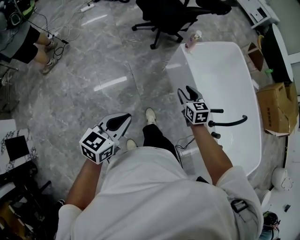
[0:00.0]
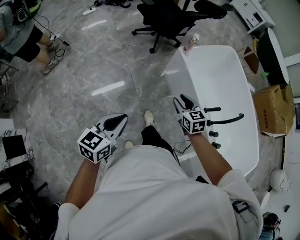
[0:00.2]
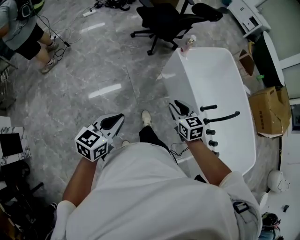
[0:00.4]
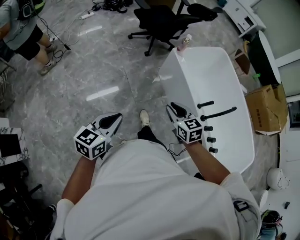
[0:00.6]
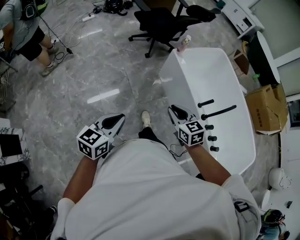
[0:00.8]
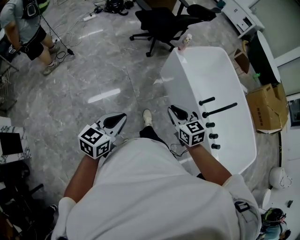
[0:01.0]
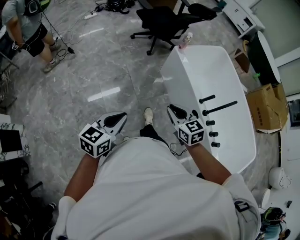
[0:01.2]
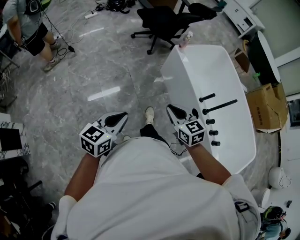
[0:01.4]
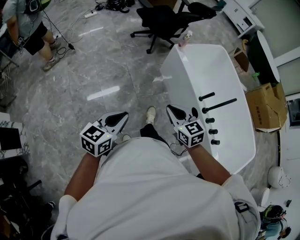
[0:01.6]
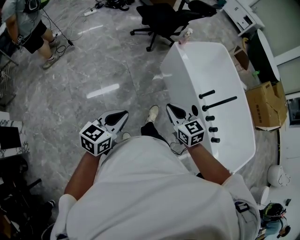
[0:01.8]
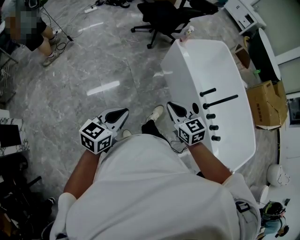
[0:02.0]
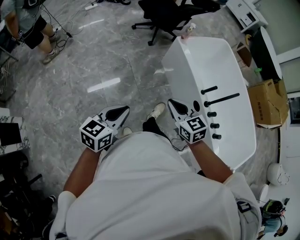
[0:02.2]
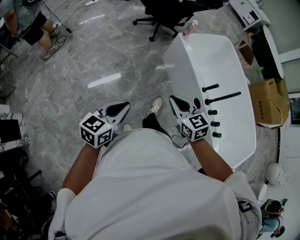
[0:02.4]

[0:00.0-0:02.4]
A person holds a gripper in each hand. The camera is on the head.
0:00.0 to 0:01.2: The right gripper goes about 25 cm backward, and closes up. Meanwhile the left gripper shifts some 15 cm backward.
0:01.2 to 0:02.4: The grippers make only small movements.

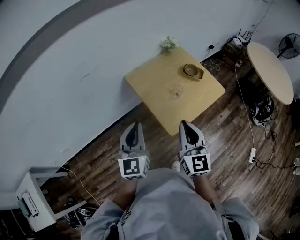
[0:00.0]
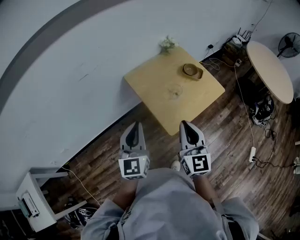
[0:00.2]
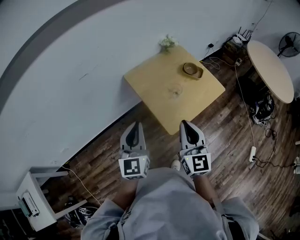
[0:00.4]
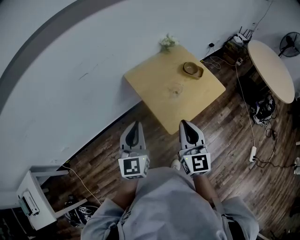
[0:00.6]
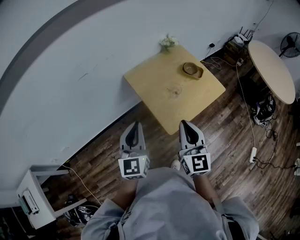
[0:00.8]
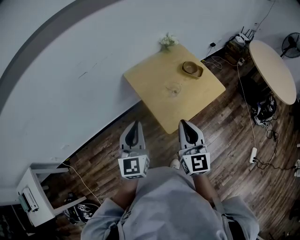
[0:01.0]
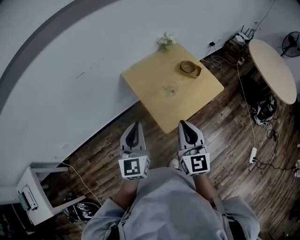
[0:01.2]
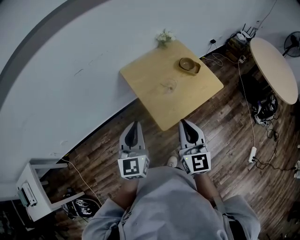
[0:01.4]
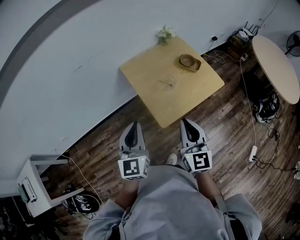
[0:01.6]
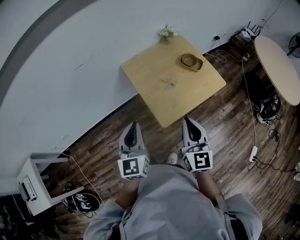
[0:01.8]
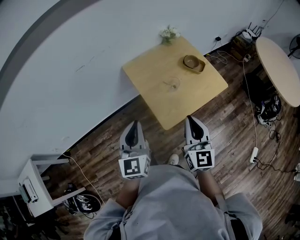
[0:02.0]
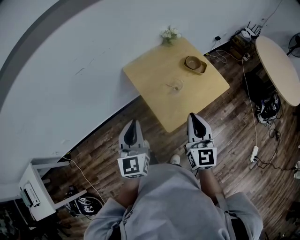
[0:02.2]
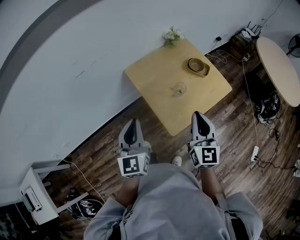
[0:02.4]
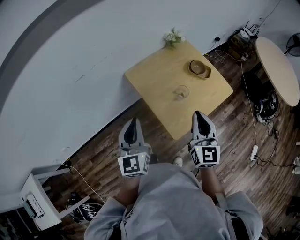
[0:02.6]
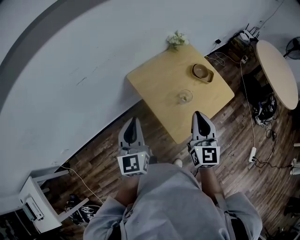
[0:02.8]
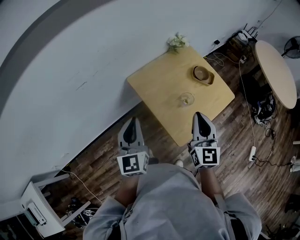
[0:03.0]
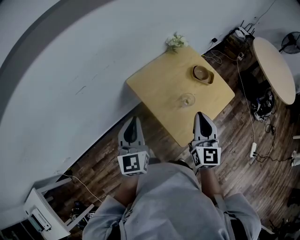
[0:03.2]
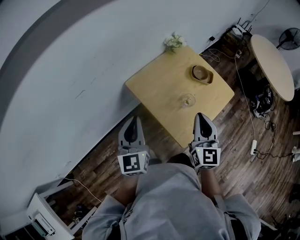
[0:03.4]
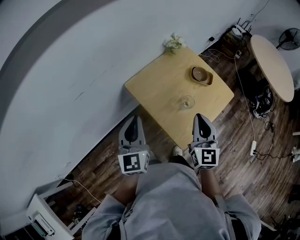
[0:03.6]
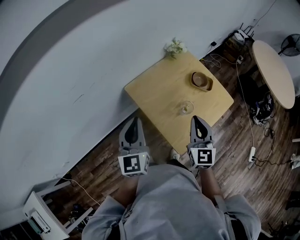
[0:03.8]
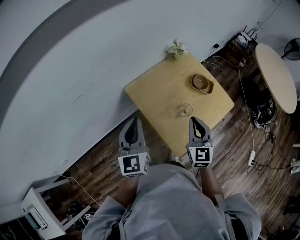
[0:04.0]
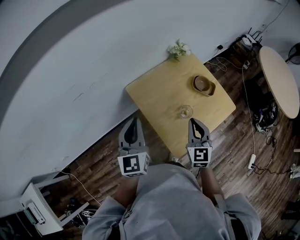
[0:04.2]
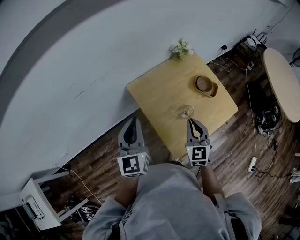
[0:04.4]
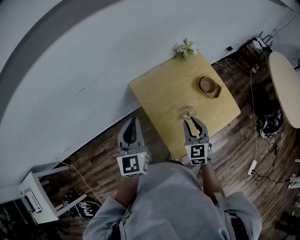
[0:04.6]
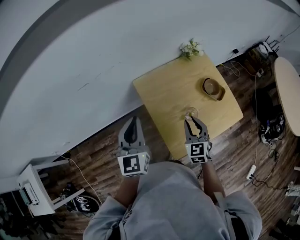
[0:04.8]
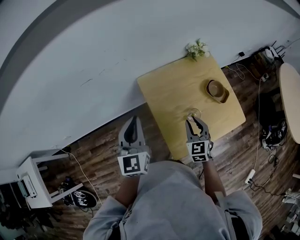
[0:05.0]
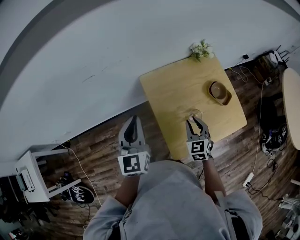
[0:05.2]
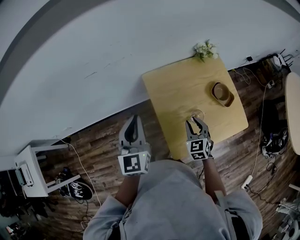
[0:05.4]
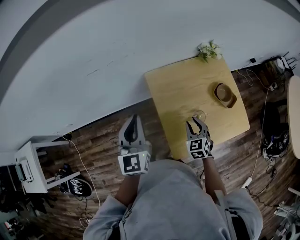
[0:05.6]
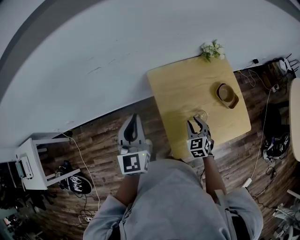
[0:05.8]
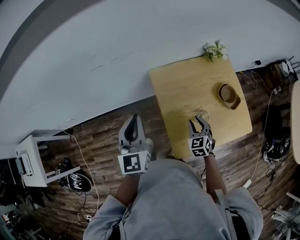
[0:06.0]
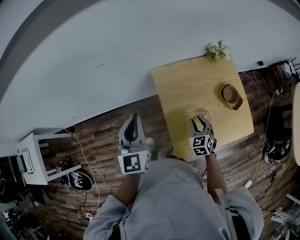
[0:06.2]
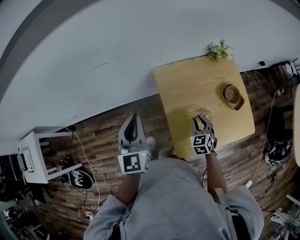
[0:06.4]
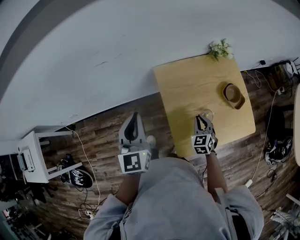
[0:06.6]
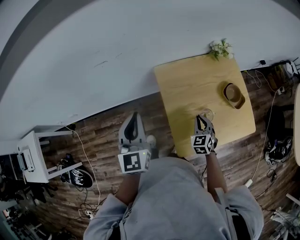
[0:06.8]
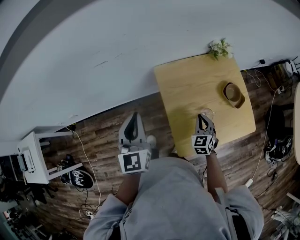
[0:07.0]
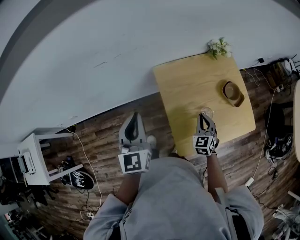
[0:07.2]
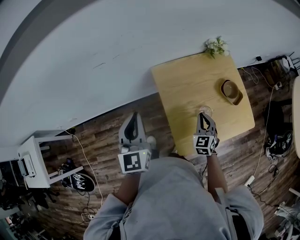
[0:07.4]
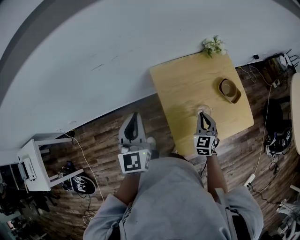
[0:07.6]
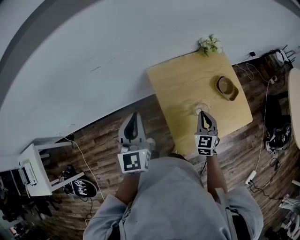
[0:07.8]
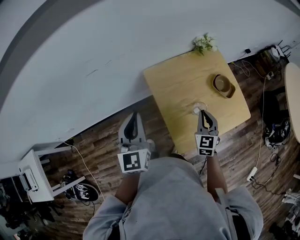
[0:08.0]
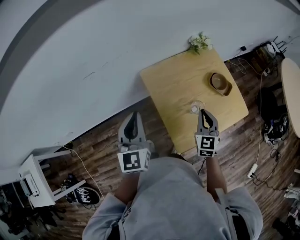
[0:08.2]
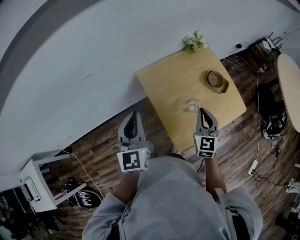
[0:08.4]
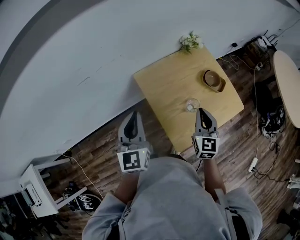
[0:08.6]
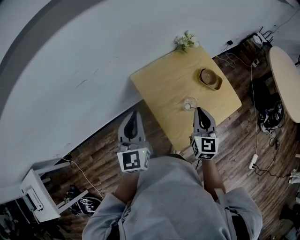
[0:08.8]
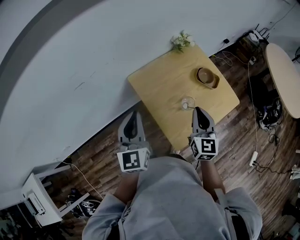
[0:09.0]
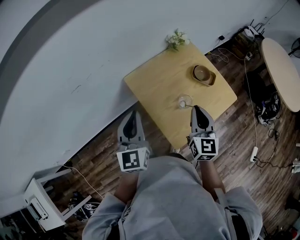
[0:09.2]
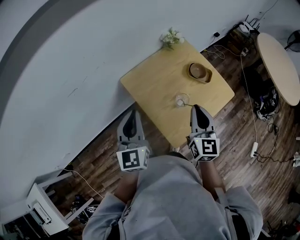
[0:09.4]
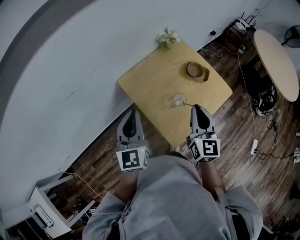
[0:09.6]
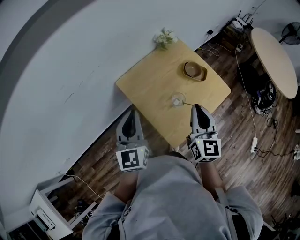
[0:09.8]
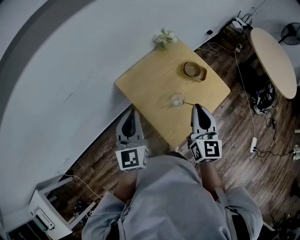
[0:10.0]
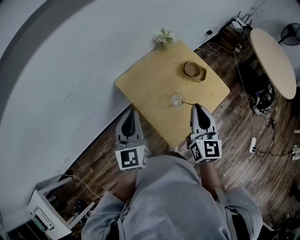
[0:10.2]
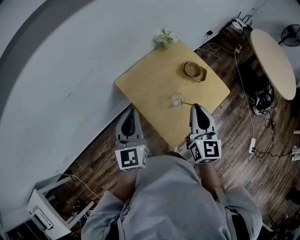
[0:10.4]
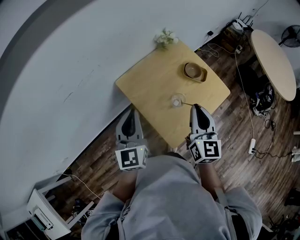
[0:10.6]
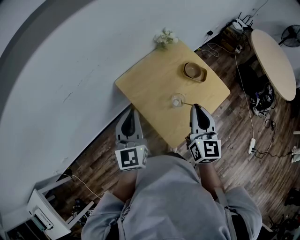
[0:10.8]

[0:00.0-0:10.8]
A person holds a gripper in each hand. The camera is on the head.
0:00.0 to 0:01.6: Both grippers move to the right, approximately 5 cm.
0:01.6 to 0:03.0: The left gripper travels forward and to the left by about 20 cm, while the right gripper is displaced forward by approximately 15 cm.
0:03.0 to 0:04.6: The right gripper heads downward and forward, covering roughly 15 cm, turns by approximately 30 degrees, and opens. Meanwhile the left gripper travels forward by some 5 cm.
0:04.6 to 0:06.2: The right gripper is displaced downward by about 15 cm, and changes its angle by some 20 degrees.
0:06.2 to 0:07.8: The right gripper goes some 5 cm upward, swivels some 20 degrees, and closes up.
0:07.8 to 0:09.2: The right gripper shifts about 15 cm upward, and swivels some 30 degrees. The left gripper changes place by roughly 5 cm.
0:09.2 to 0:10.8: The grippers move only a little.

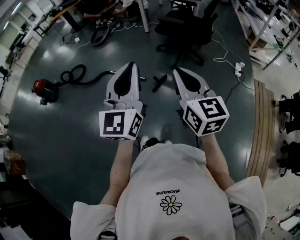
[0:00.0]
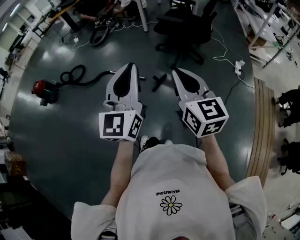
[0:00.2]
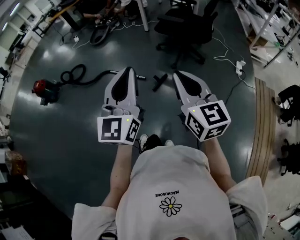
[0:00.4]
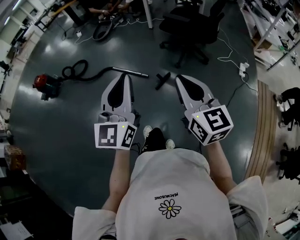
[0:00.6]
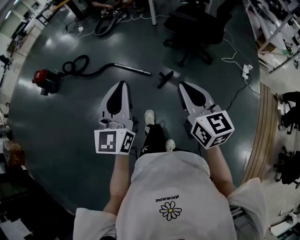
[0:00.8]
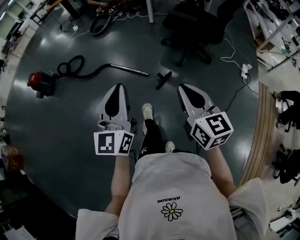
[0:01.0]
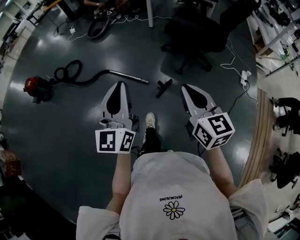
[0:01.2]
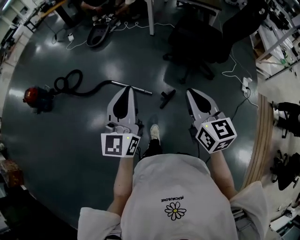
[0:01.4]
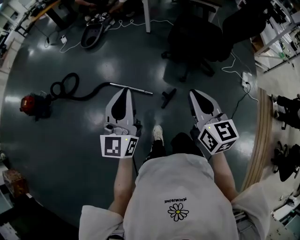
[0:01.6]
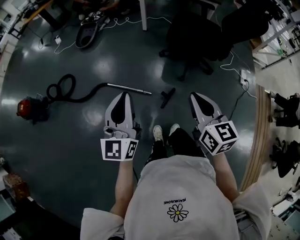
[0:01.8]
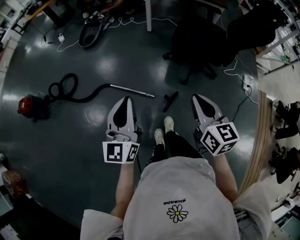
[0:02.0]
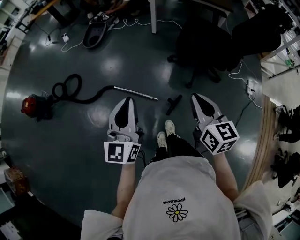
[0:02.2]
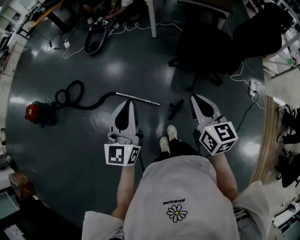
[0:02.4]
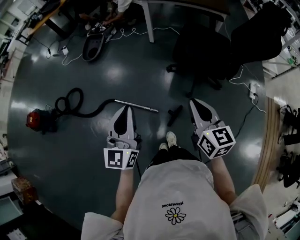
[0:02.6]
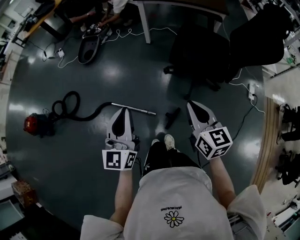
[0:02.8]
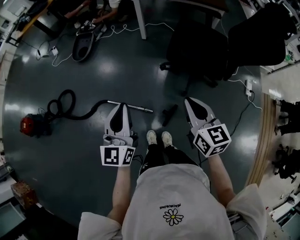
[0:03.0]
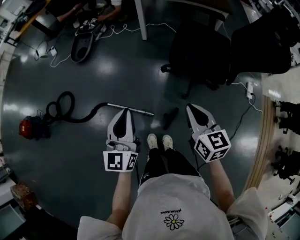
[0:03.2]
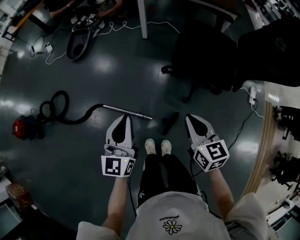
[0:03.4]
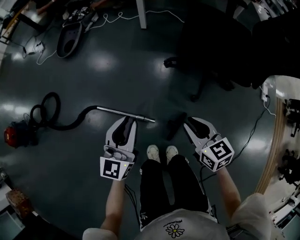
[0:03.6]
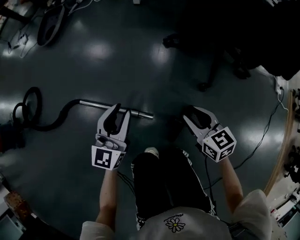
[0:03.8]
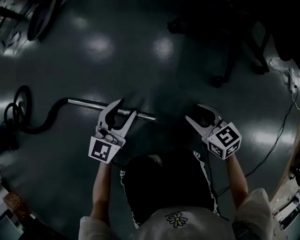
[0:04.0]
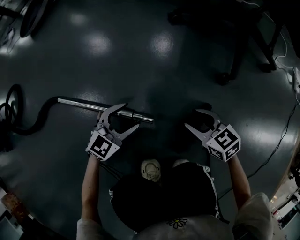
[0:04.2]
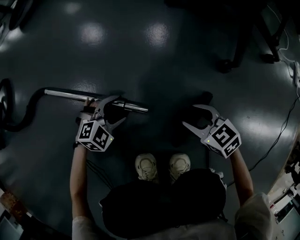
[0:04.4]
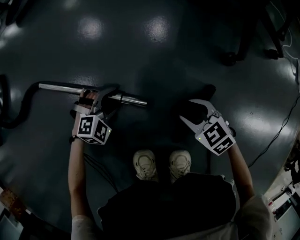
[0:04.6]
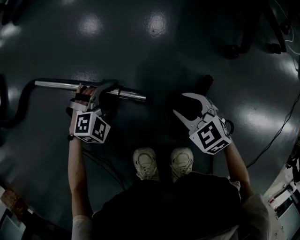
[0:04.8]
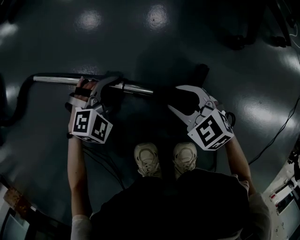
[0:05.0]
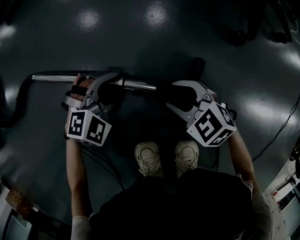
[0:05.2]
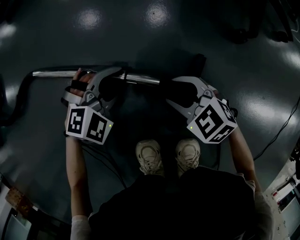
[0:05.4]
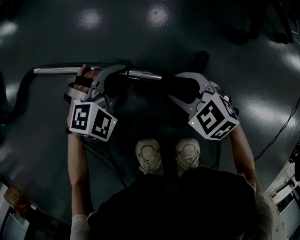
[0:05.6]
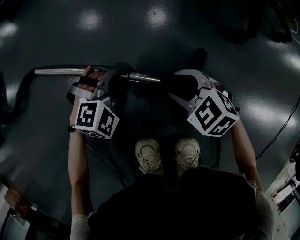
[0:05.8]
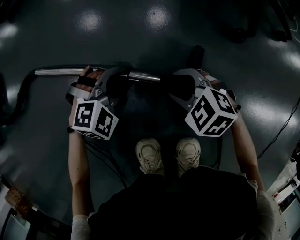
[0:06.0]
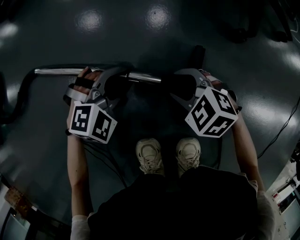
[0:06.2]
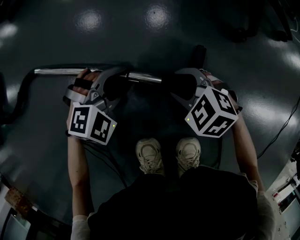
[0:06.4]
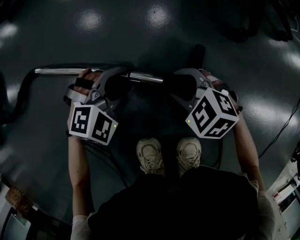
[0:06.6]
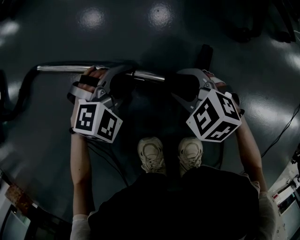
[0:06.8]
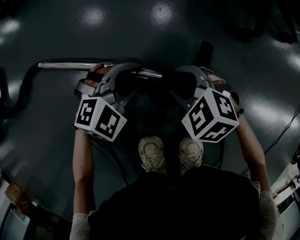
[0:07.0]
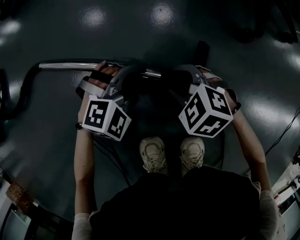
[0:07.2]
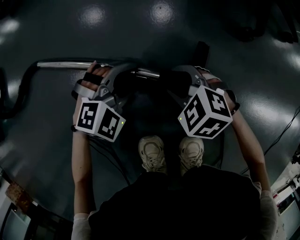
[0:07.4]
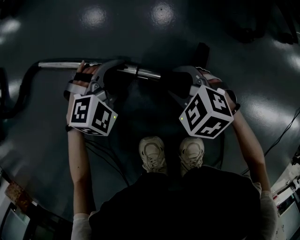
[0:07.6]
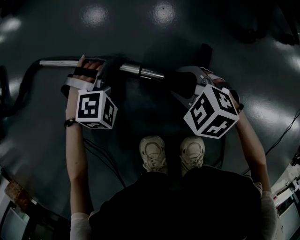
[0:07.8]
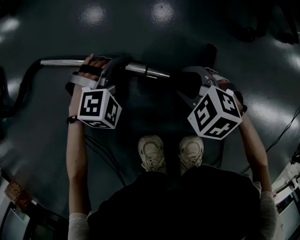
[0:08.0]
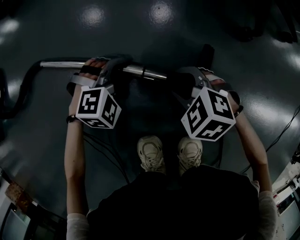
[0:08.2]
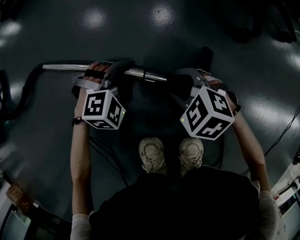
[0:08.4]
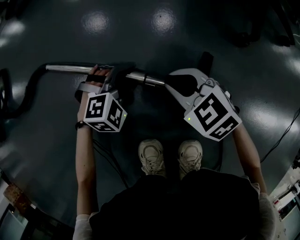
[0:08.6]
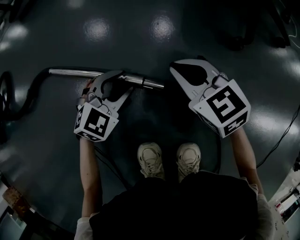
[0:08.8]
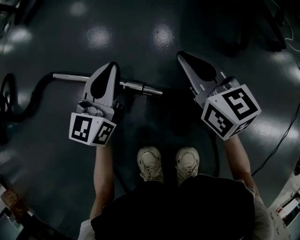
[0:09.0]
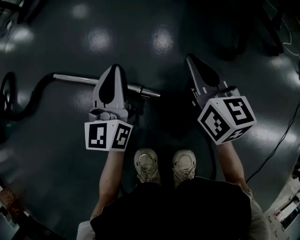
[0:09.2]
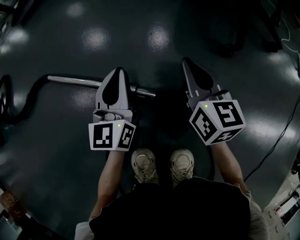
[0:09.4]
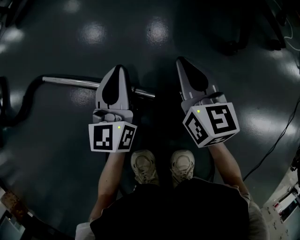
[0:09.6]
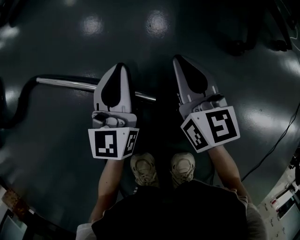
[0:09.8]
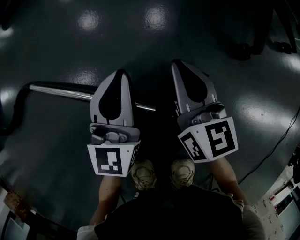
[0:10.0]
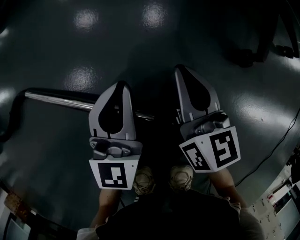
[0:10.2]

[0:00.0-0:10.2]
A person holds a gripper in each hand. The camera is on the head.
0:00.0 to 0:01.4: The left gripper shifts approximately 30 cm forward and to the left. Meanwhile the right gripper travels forward by about 25 cm.
0:01.4 to 0:03.0: Both grippers travel together forward, some 30 cm.
0:03.0 to 0:04.4: Both grippers travel together downward, roughly 90 cm. The left gripper points its fingers roughly 60 degrees further downward, and opens up, while the right gripper rotates about 40 degrees, and opens.
0:04.4 to 0:05.8: The left gripper closes its fingers, while the right gripper moves to the left, approximately 10 cm, and turns by about 30 degrees.
0:05.8 to 0:07.2: The grippers move only a little.
0:07.2 to 0:08.8: The right gripper travels upward and forward by about 10 cm, rotates approximately 40 degrees, and closes its fingers. The left gripper changes place by approximately 5 cm, and swivels about 30 degrees.
0:08.8 to 0:10.2: The right gripper shifts approximately 5 cm forward, moves approximately 5 cm upward and comes back, and swivels about 40 degrees; the left gripper heads forward and upward, covering some 10 cm, tips its fingers upward by about 30 degrees, and closes its fingers.
